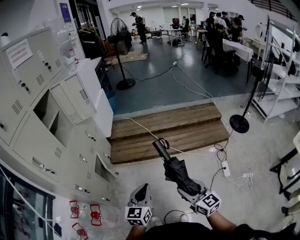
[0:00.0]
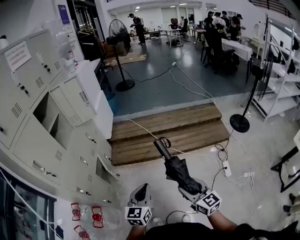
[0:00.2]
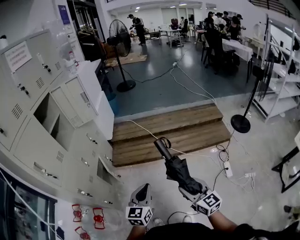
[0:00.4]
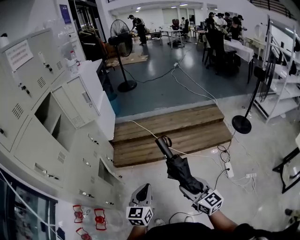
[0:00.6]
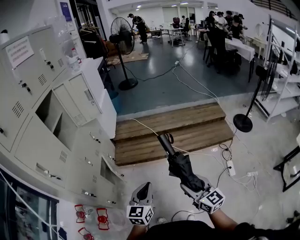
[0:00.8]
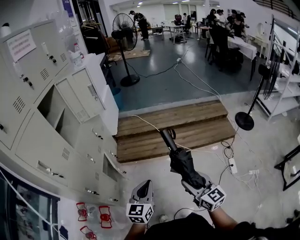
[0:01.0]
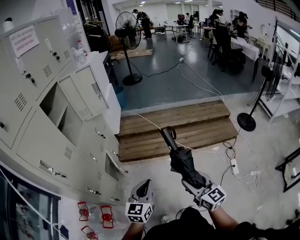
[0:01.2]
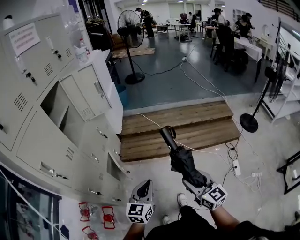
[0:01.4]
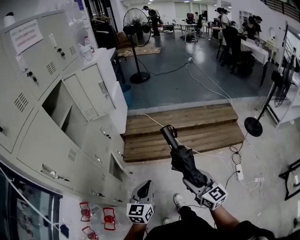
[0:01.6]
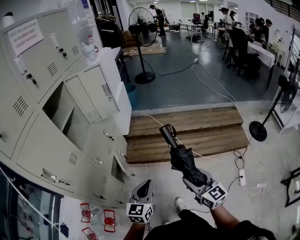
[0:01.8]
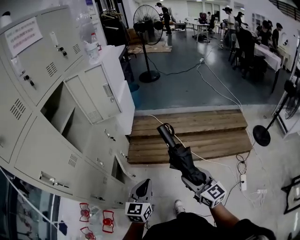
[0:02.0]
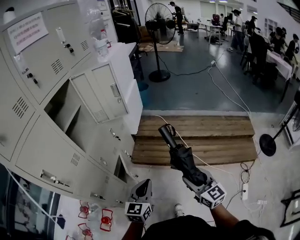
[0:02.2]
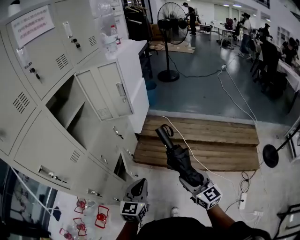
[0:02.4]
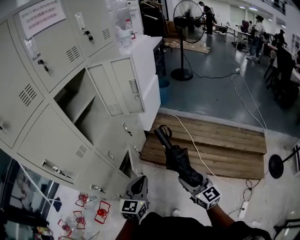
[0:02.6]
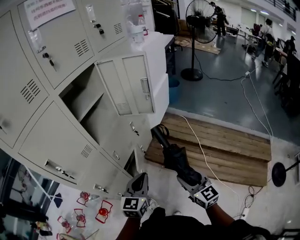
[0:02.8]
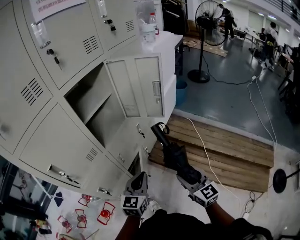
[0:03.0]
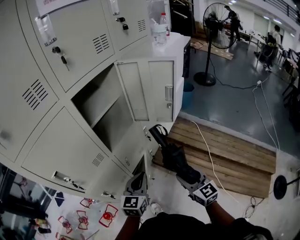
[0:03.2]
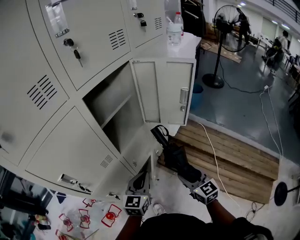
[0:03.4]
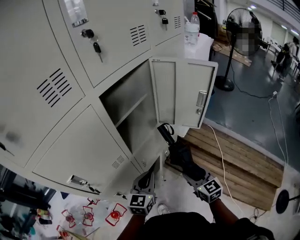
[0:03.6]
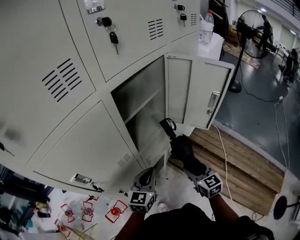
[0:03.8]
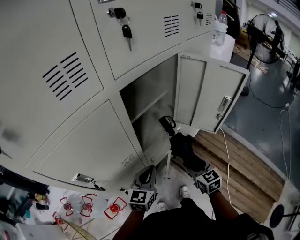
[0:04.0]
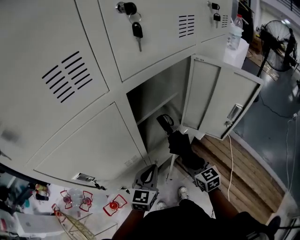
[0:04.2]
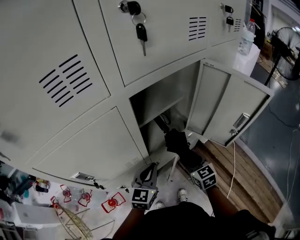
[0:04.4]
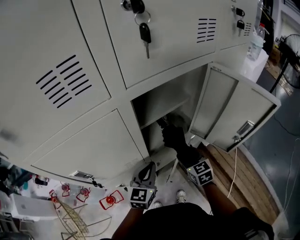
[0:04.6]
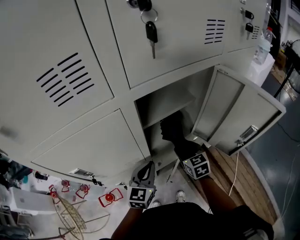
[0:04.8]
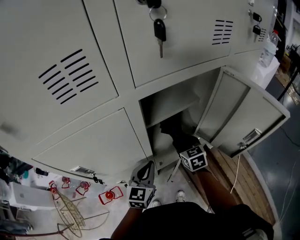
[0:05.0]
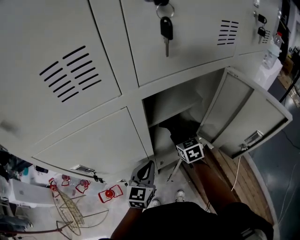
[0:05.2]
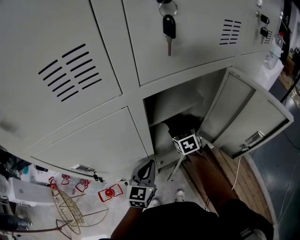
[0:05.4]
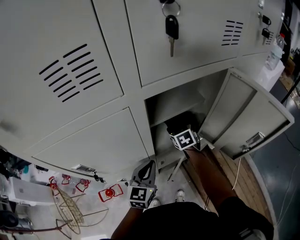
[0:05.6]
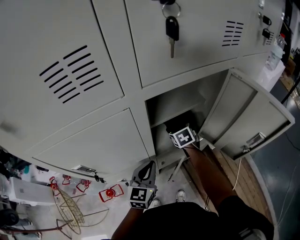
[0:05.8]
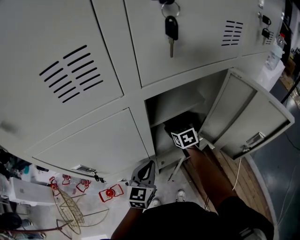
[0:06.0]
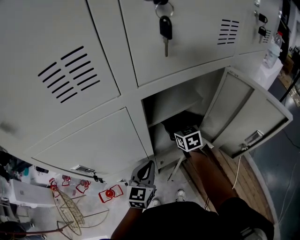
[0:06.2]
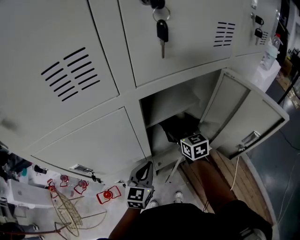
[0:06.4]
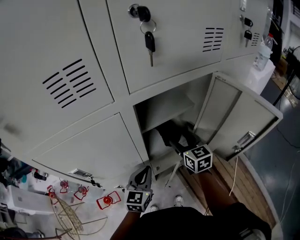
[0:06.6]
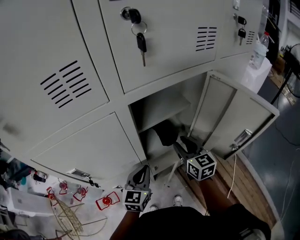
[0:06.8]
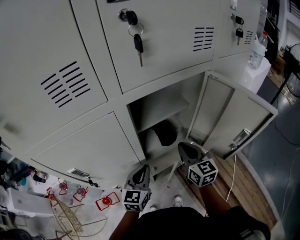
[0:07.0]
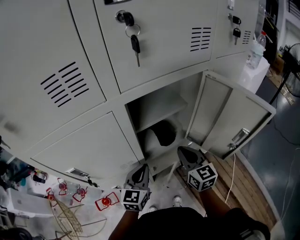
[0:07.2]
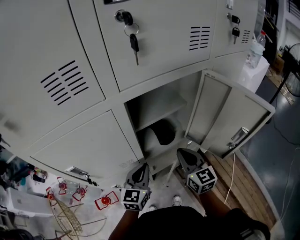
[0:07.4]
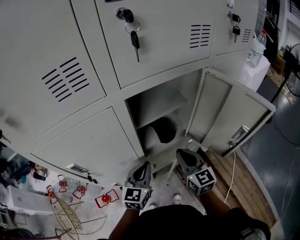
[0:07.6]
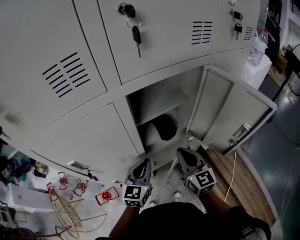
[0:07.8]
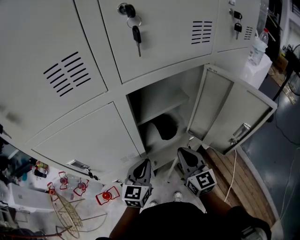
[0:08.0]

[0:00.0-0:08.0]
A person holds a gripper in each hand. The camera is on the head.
0:00.0 to 0:01.6: The left gripper travels to the left and forward by about 15 cm. The right gripper heads forward and to the left, covering approximately 20 cm.
0:01.6 to 0:03.2: The right gripper shifts by approximately 40 cm, and swivels roughly 30 degrees, while the left gripper ends up approximately 30 cm from where it was, and swivels about 30 degrees.
0:03.2 to 0:04.8: The right gripper travels forward and to the left by about 35 cm, and turns by some 30 degrees; the left gripper heads forward and to the left, covering approximately 20 cm, and rotates approximately 30 degrees.
0:04.8 to 0:06.4: The right gripper is displaced forward and upward by roughly 10 cm.
0:06.4 to 0:08.0: The right gripper shifts roughly 15 cm backward, and closes up.

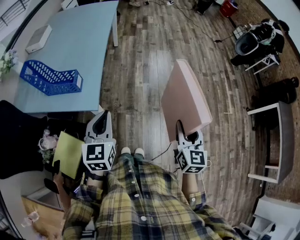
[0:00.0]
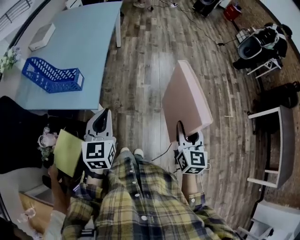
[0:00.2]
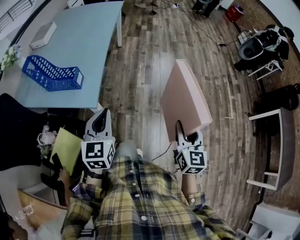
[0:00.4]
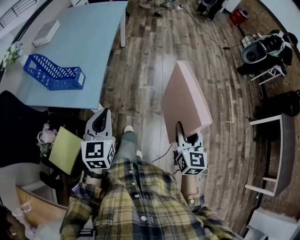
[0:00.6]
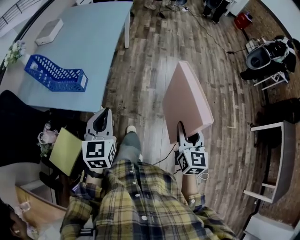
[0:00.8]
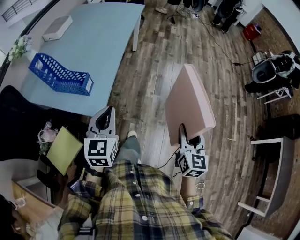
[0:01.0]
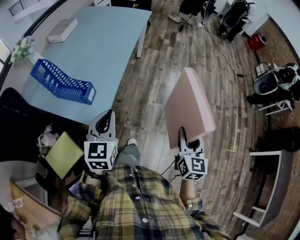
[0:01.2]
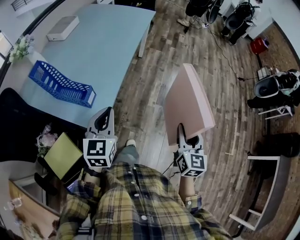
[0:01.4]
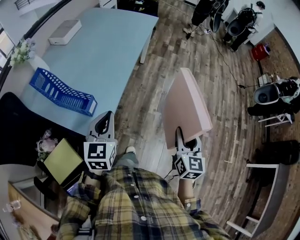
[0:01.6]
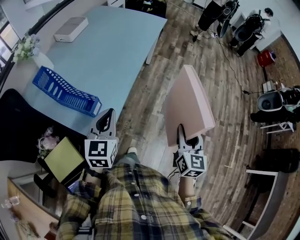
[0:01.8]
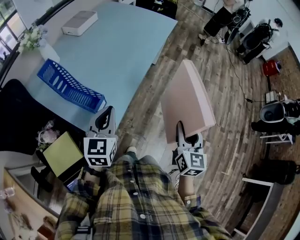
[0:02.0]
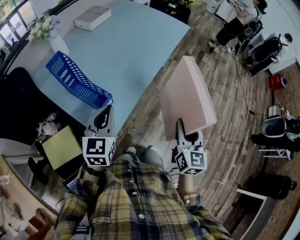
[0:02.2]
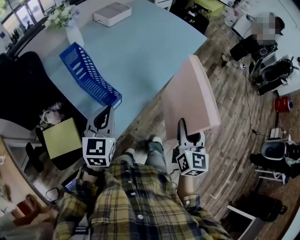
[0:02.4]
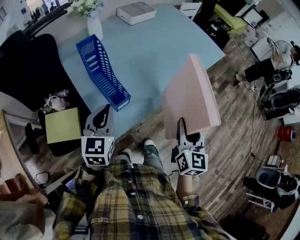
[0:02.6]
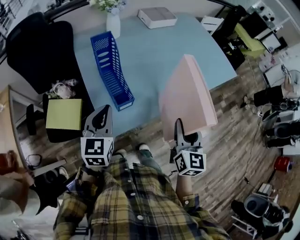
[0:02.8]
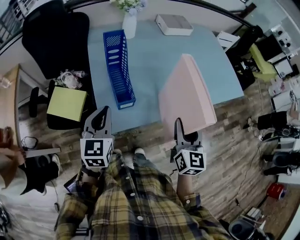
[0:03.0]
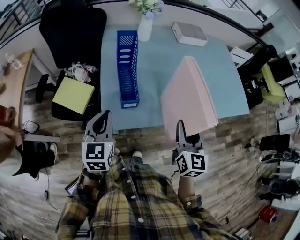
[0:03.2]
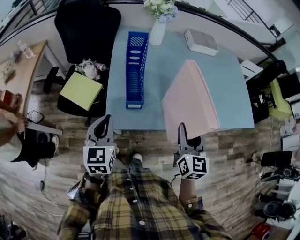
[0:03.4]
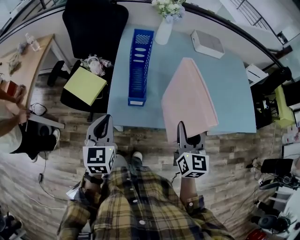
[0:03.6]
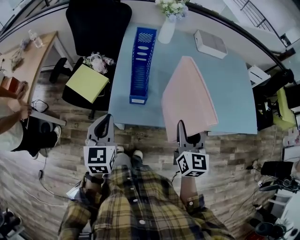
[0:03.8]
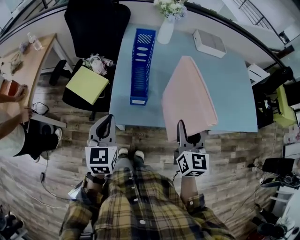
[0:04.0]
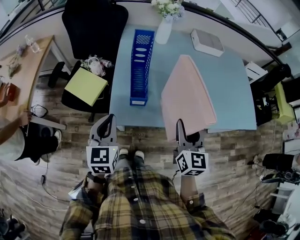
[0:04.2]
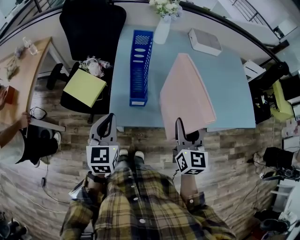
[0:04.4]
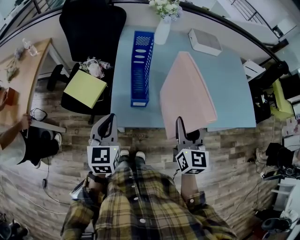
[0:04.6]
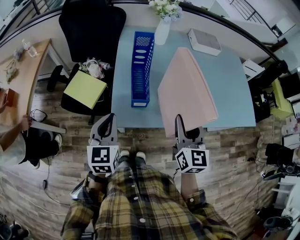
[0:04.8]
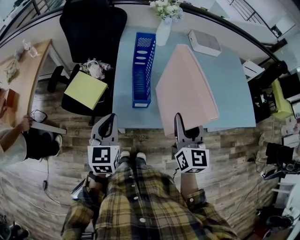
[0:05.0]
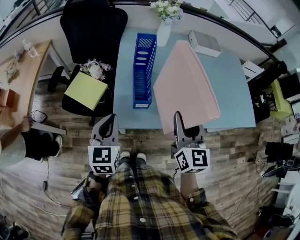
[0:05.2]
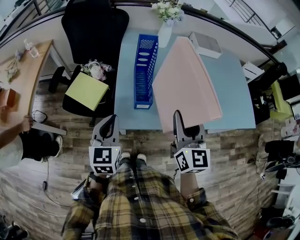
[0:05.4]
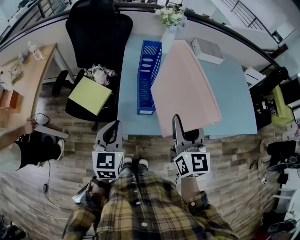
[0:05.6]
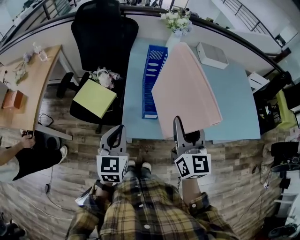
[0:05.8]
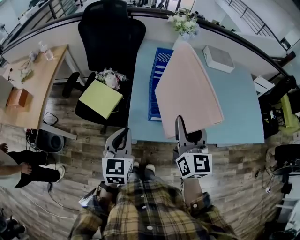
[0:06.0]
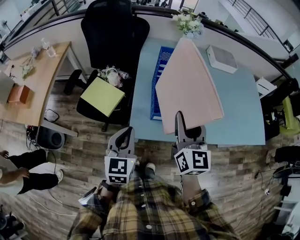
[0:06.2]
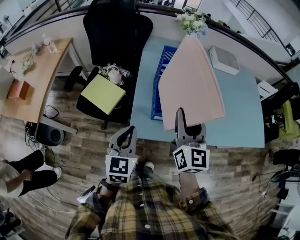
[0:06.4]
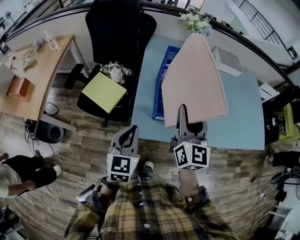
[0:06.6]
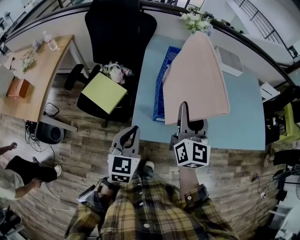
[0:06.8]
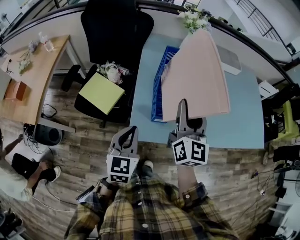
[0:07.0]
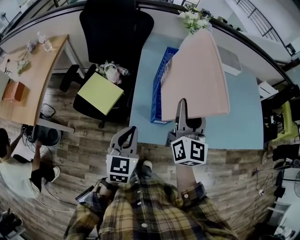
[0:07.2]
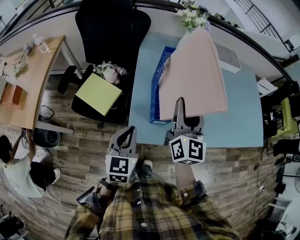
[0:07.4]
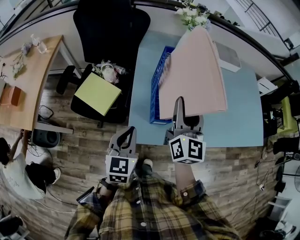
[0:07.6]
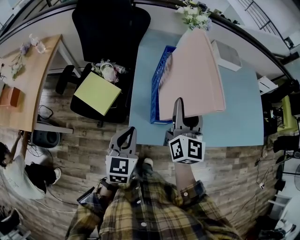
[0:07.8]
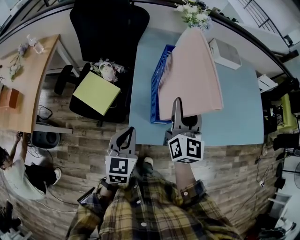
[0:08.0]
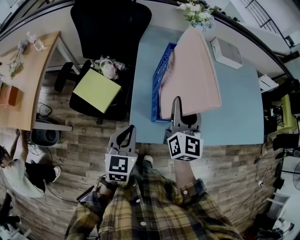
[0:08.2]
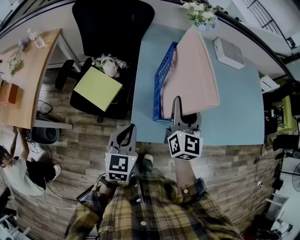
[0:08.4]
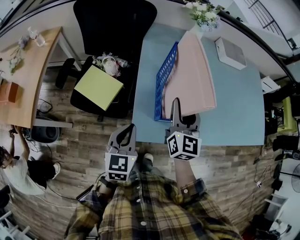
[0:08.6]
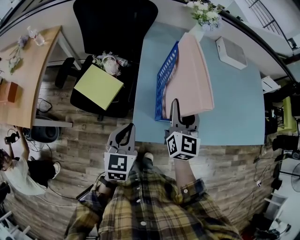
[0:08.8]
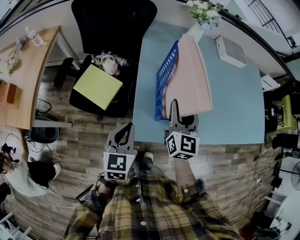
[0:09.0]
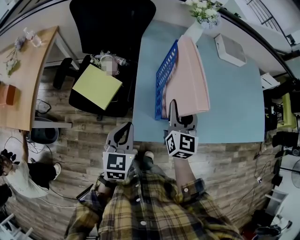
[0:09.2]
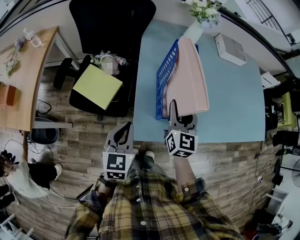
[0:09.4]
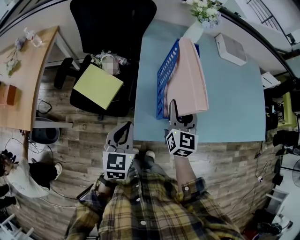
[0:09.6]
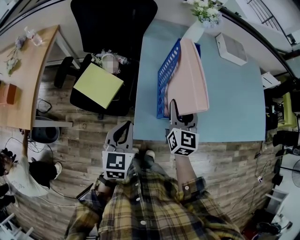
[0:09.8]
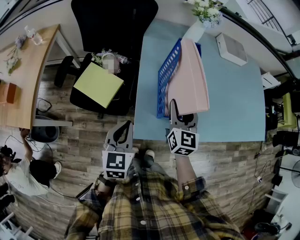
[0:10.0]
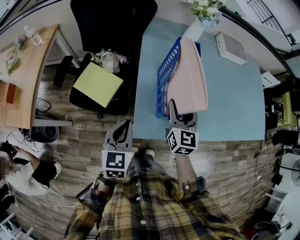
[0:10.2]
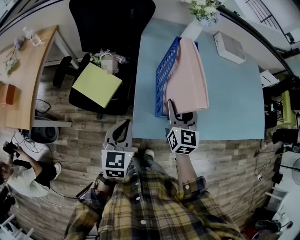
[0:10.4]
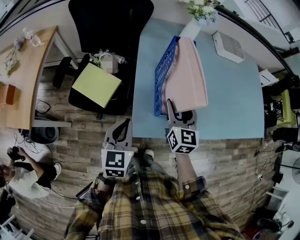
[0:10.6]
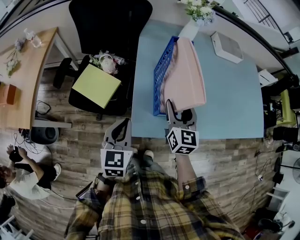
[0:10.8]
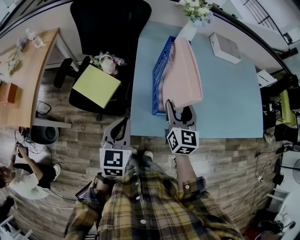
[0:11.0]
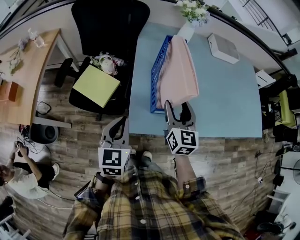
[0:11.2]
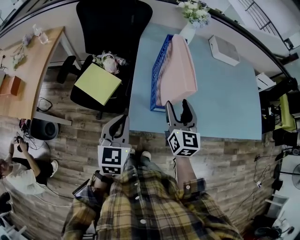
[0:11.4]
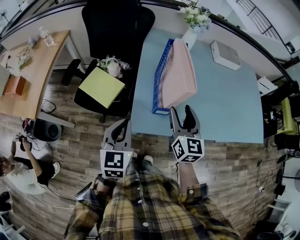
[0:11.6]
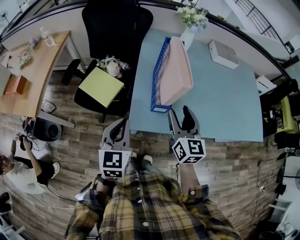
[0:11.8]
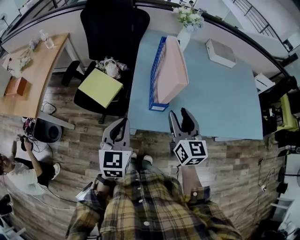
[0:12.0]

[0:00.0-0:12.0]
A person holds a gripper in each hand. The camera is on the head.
0:00.0 to 0:01.6: The two grippers go about 20 cm forward.
0:01.6 to 0:03.0: The right gripper shifts by roughly 35 cm, and rotates some 60 degrees. The left gripper changes place by about 10 cm, and rotates approximately 60 degrees.
0:03.0 to 0:04.4: The left gripper goes about 5 cm backward.
0:04.4 to 0:06.0: The right gripper heads to the left and upward, covering roughly 10 cm.
0:06.0 to 0:07.6: The right gripper travels forward by roughly 10 cm, while the left gripper travels forward by about 5 cm.
0:07.6 to 0:09.0: The right gripper shifts roughly 10 cm downward.
0:09.0 to 0:10.4: The grippers stay close to where they were, moving slightly.
0:10.4 to 0:12.0: Both grippers travel together backward and upward, some 10 cm.

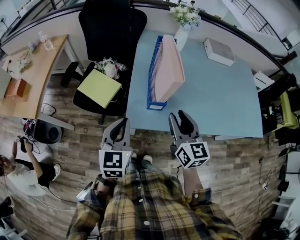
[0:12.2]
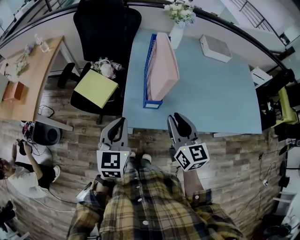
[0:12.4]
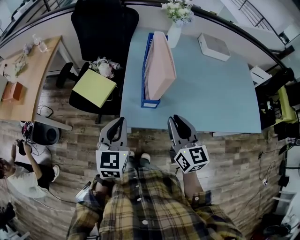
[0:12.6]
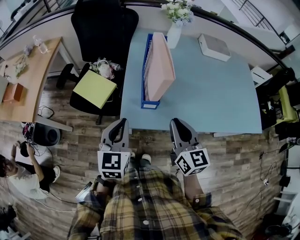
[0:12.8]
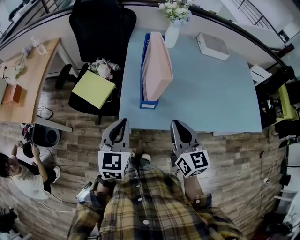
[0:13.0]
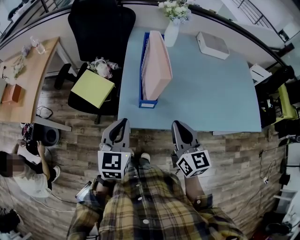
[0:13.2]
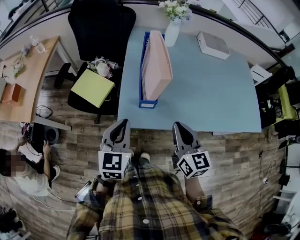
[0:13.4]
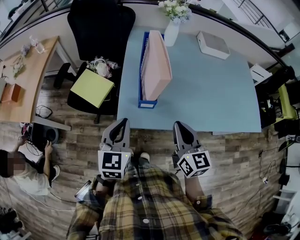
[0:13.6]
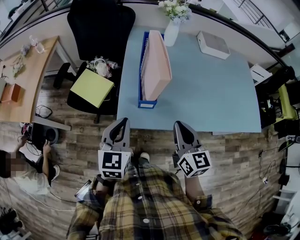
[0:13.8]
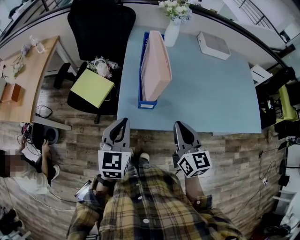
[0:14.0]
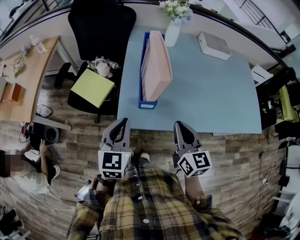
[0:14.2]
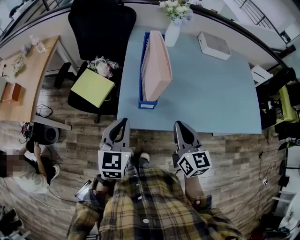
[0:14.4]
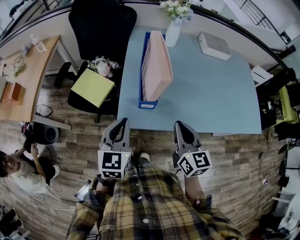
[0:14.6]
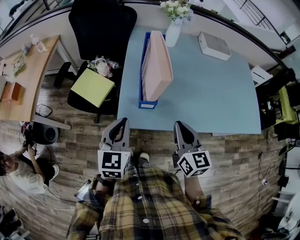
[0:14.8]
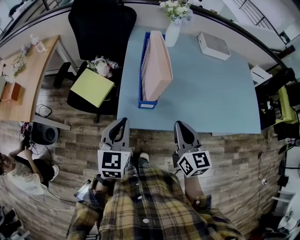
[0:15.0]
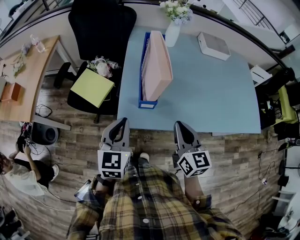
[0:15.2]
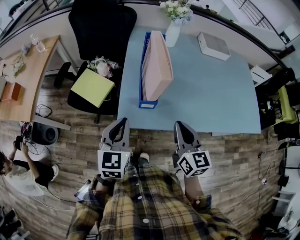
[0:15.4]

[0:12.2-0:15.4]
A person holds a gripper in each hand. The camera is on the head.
0:12.2 to 0:13.8: The right gripper shifts about 5 cm to the right, and closes up.
0:13.8 to 0:15.4: Both grippers stay put.
